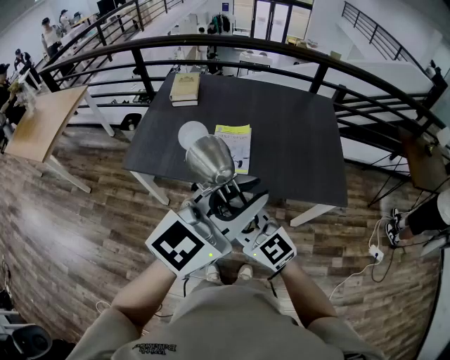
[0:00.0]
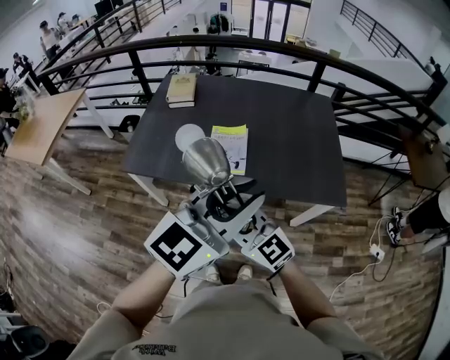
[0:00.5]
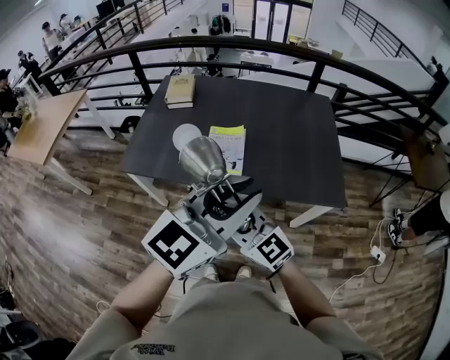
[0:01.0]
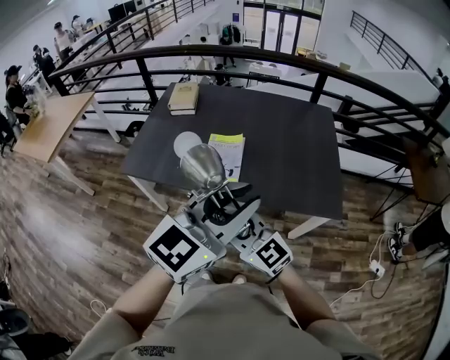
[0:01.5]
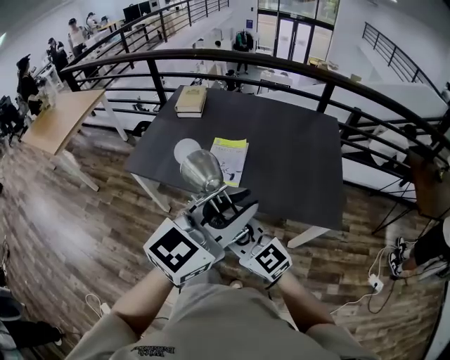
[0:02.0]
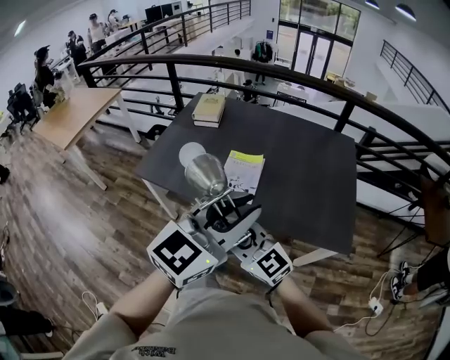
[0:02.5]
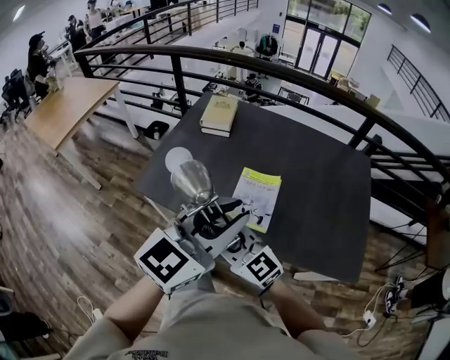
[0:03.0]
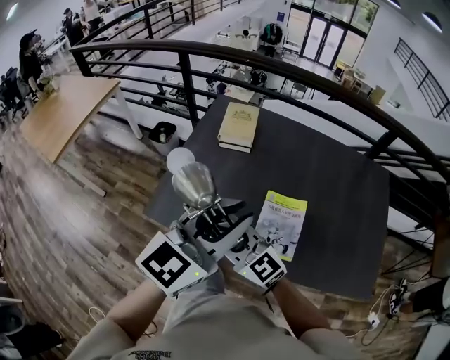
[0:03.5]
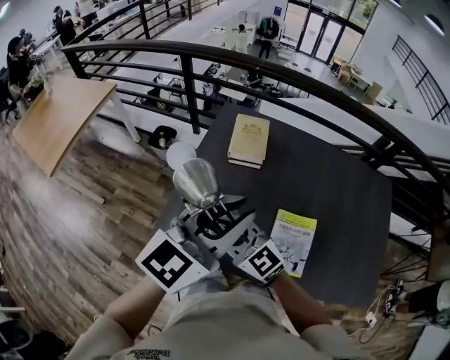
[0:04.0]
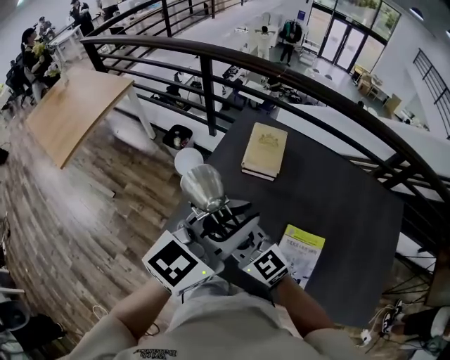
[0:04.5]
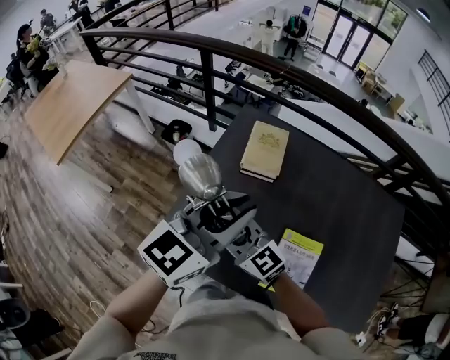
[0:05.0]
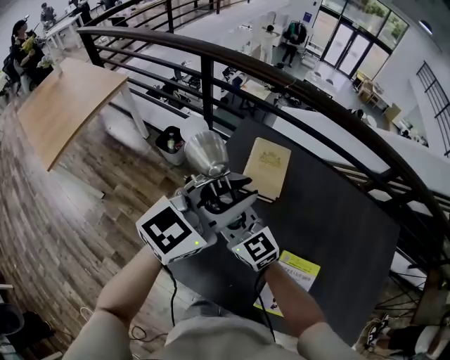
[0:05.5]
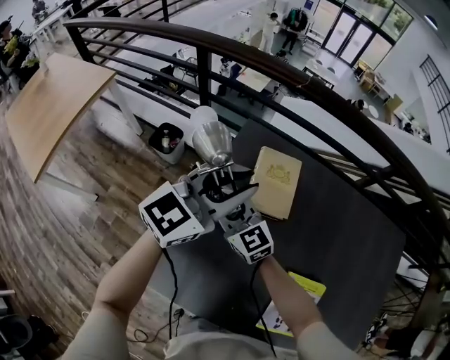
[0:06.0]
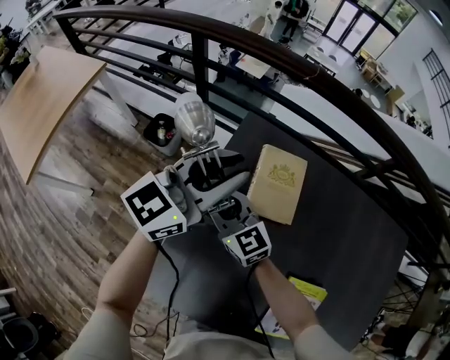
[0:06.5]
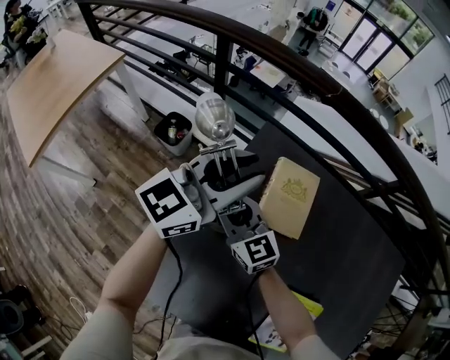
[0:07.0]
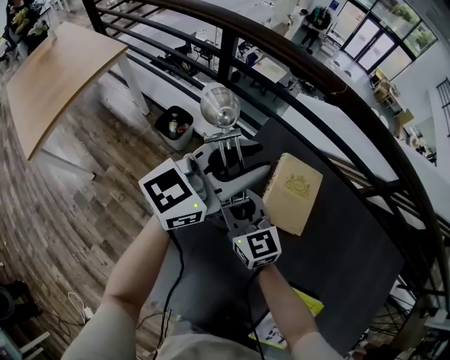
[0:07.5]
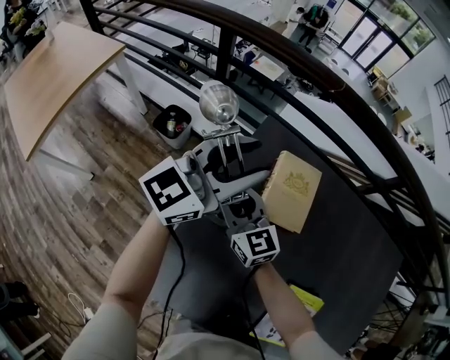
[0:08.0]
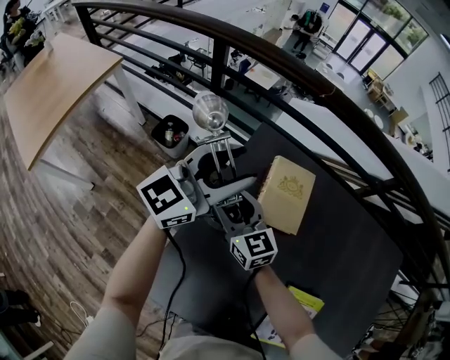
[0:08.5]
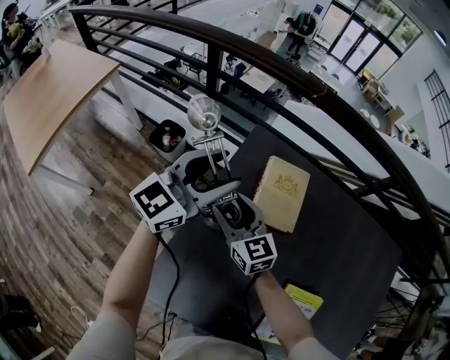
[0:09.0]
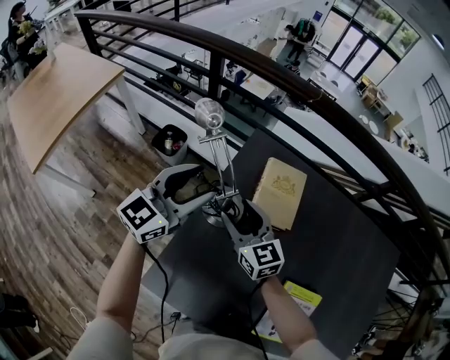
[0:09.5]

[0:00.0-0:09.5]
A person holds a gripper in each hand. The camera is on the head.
0:00.0 to 0:02.0: Both grippers move to the right, approximately 10 cm.
0:02.0 to 0:04.0: The two grippers travel together, forward and to the left, approximately 50 cm.
0:04.0 to 0:05.5: The two grippers go approximately 20 cm forward.
0:05.5 to 0:07.5: The left gripper goes roughly 25 cm forward, downward and to the left; the right gripper goes roughly 20 cm forward and downward.
0:07.5 to 0:09.5: The left gripper heads backward and to the left, covering about 10 cm, and opens; the right gripper goes roughly 5 cm to the right, and opens.

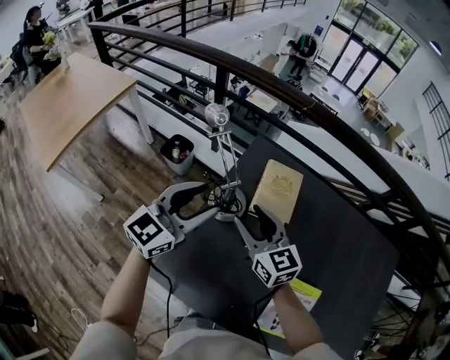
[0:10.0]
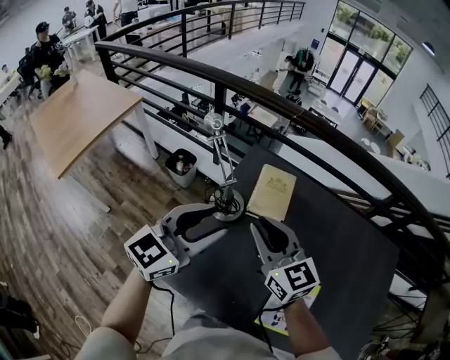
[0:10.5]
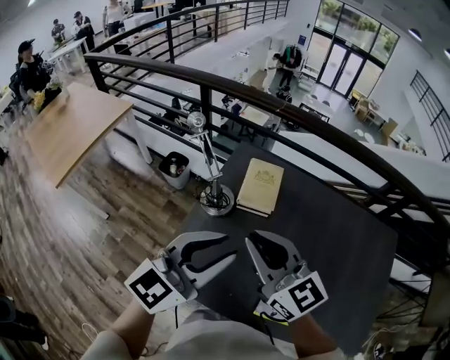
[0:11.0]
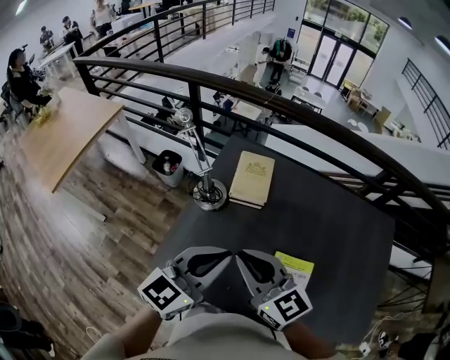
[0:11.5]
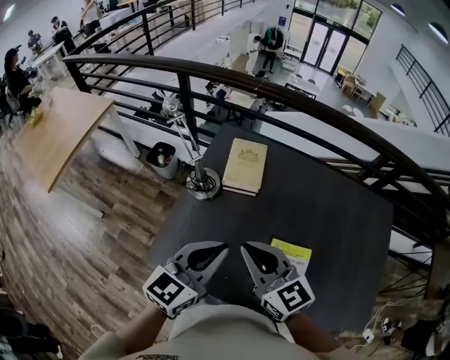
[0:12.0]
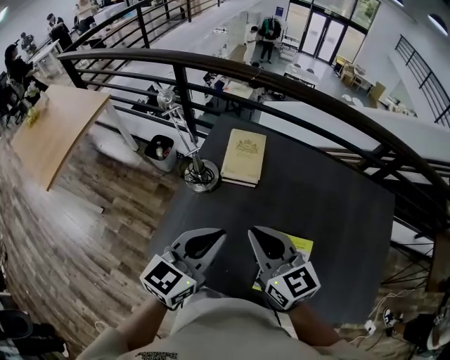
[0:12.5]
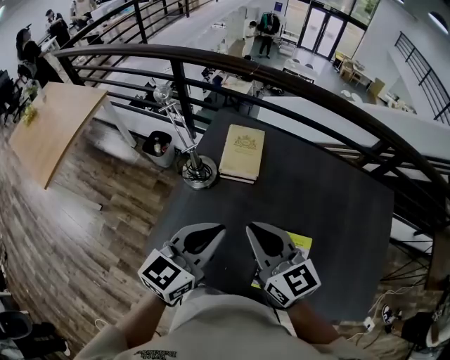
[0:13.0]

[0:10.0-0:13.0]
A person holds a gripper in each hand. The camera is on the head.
0:10.0 to 0:11.5: The right gripper shifts roughly 25 cm backward, upward and to the right, and closes its fingers. Meanwhile the left gripper is displaced backward and to the right by approximately 25 cm, and closes its fingers.
0:11.5 to 0:13.0: The right gripper ends up roughly 5 cm from where it was.

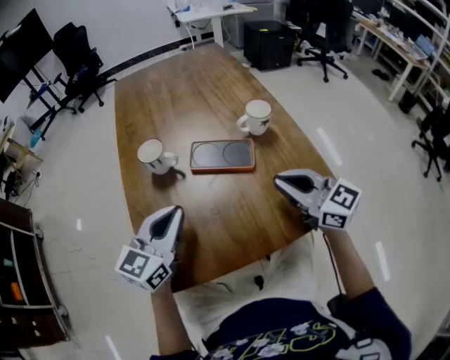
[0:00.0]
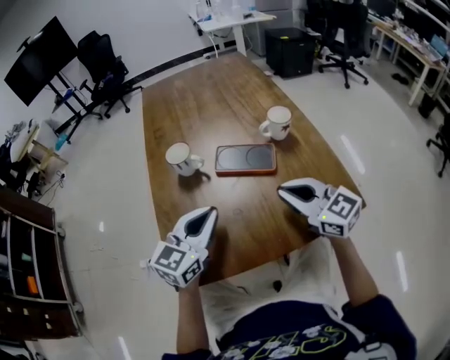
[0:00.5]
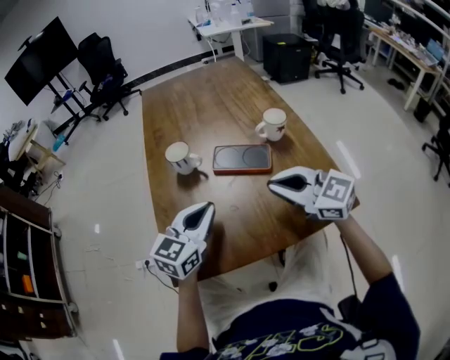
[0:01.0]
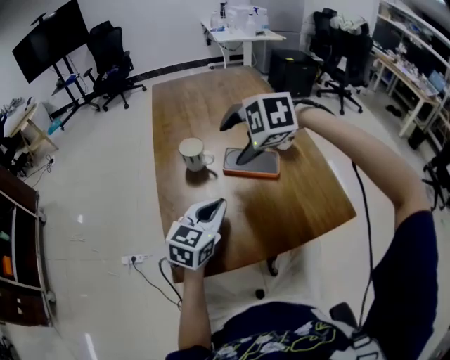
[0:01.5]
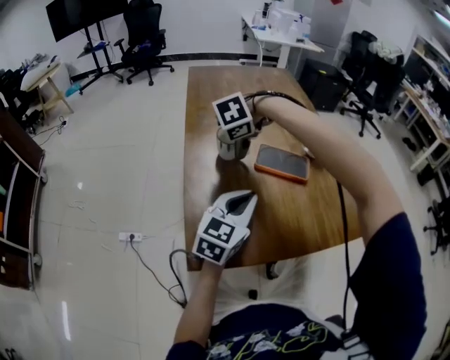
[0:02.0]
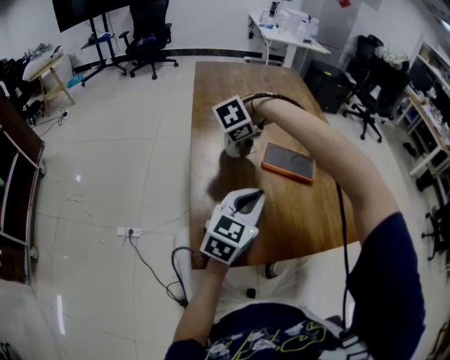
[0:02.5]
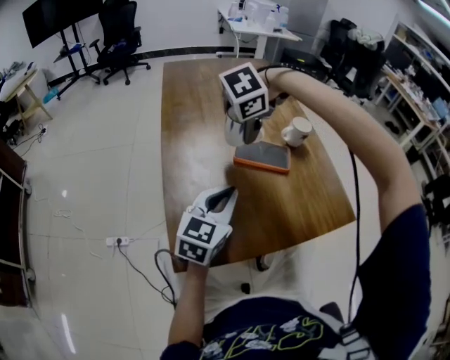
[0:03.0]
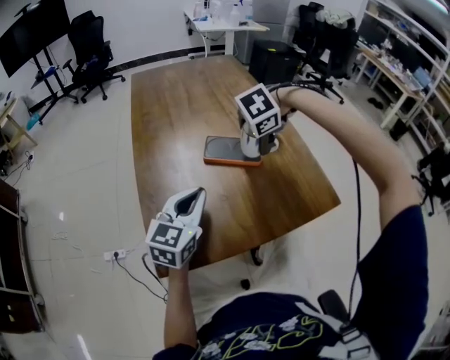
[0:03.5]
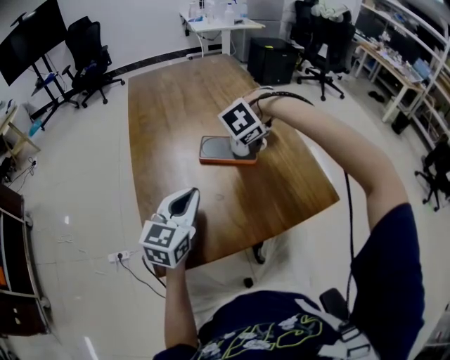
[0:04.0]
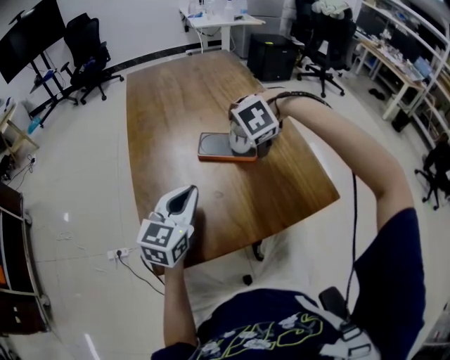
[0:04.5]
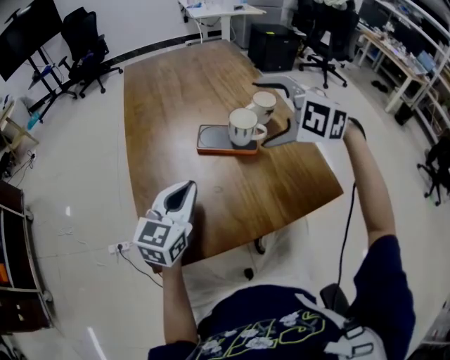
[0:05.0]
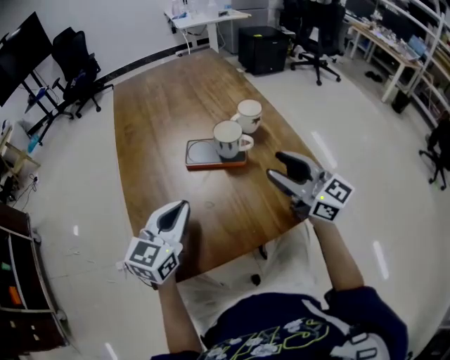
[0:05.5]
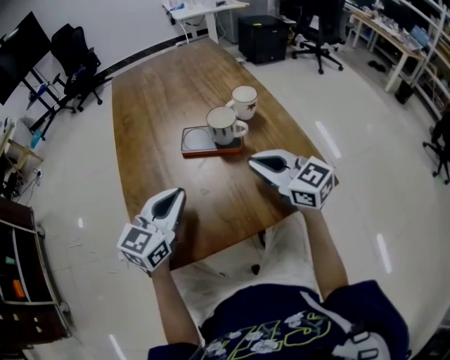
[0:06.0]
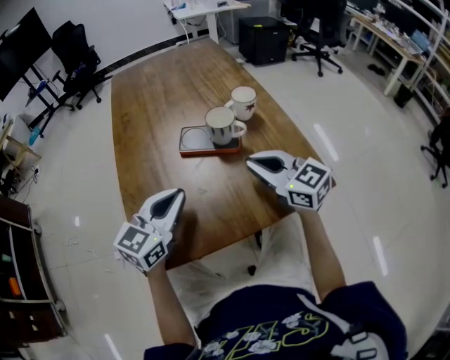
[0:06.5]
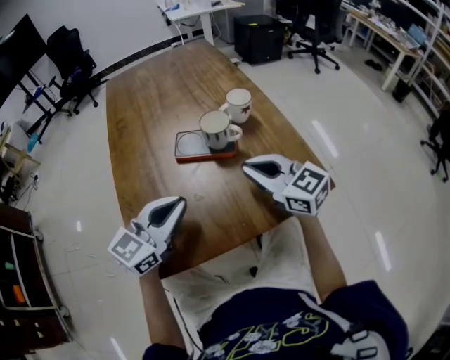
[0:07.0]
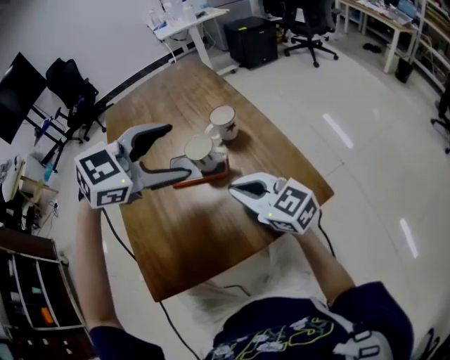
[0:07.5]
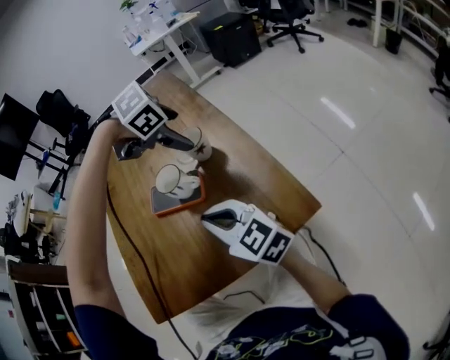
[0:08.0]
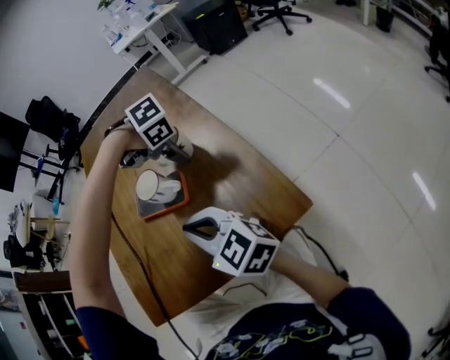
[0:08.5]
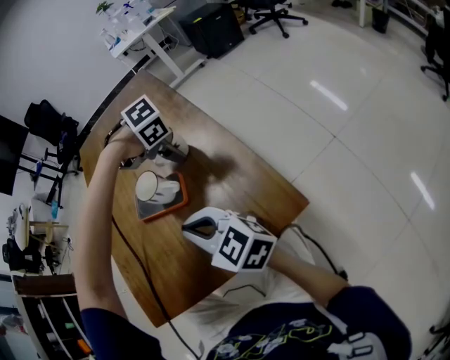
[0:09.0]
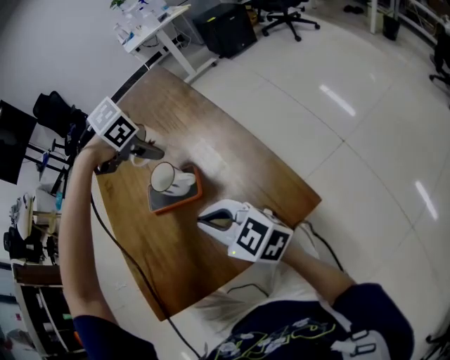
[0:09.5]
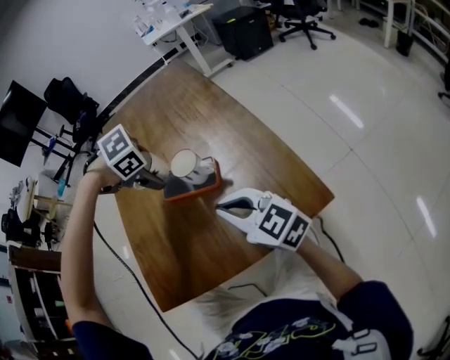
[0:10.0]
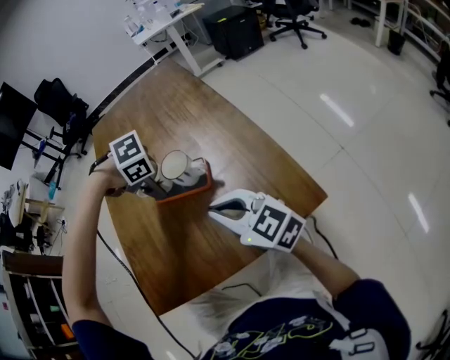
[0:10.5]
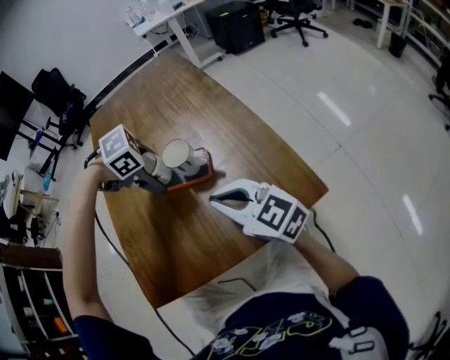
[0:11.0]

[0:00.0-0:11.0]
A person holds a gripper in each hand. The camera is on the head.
0:00.0 to 0:02.0: The right gripper moves some 30 cm, angles its fingers downward, by roughly 80 degrees, and opens.
0:02.0 to 0:03.5: The right gripper reaches about 5 cm upward, then returns.
0:03.5 to 0:05.5: The right gripper ends up some 15 cm from where it was, and tips its fingers upward by about 90 degrees.
0:05.5 to 0:07.5: The right gripper is displaced to the left by approximately 5 cm, and closes. The left gripper is displaced upward, to the right and forward by about 20 cm, turns by approximately 50 degrees, and opens.
0:07.5 to 0:09.0: The left gripper heads downward, covering roughly 20 cm, and tilts its fingers roughly 50 degrees downward.
0:09.0 to 0:11.0: The left gripper goes upward and returns, approximately 10 cm each way.

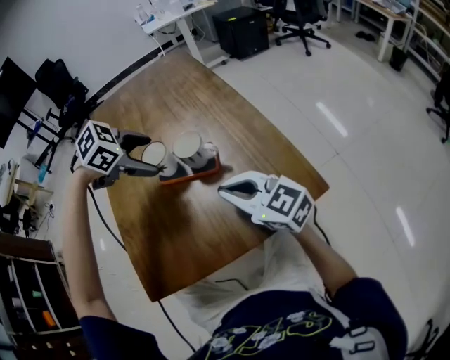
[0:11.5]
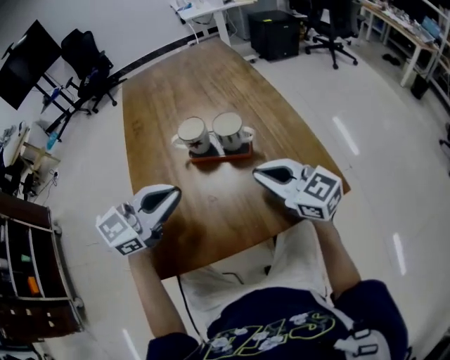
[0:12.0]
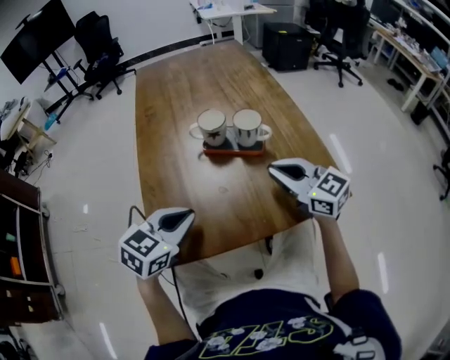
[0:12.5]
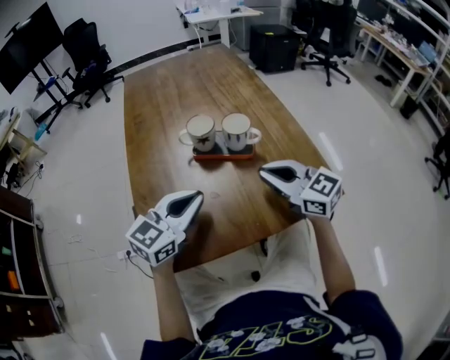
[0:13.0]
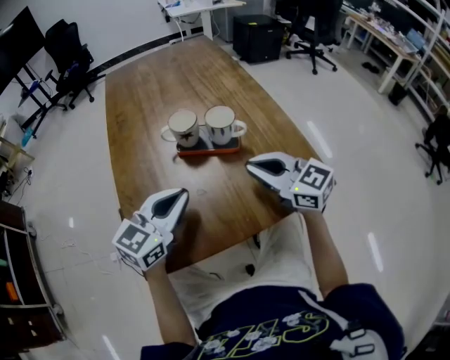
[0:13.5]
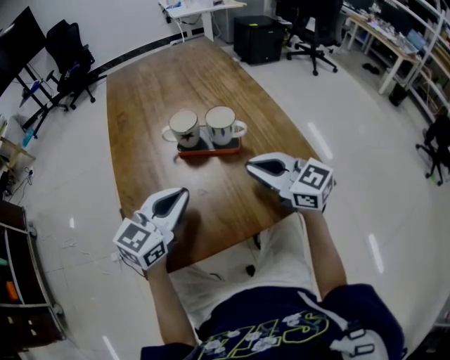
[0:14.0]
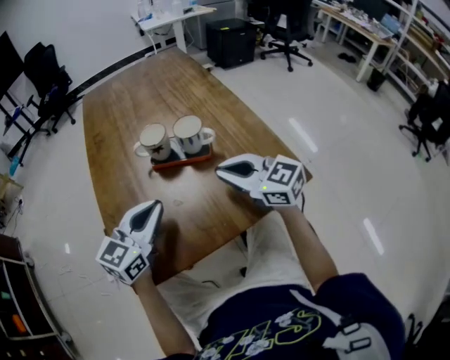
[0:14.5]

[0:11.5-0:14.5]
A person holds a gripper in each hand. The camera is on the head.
0:11.5 to 0:13.0: The left gripper changes place by approximately 15 cm, points its fingers some 50 degrees further upward, and closes up.
0:13.0 to 0:14.5: There are only small adjustments of the grippers.
